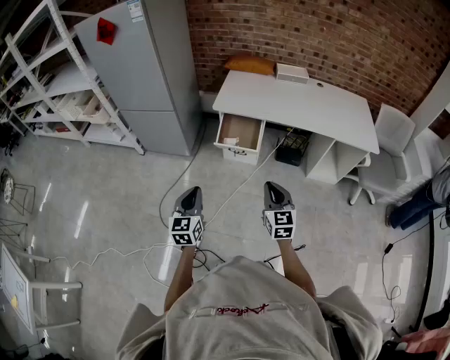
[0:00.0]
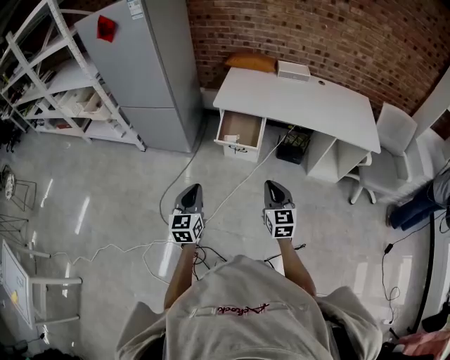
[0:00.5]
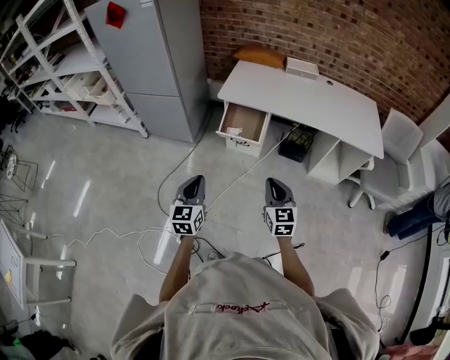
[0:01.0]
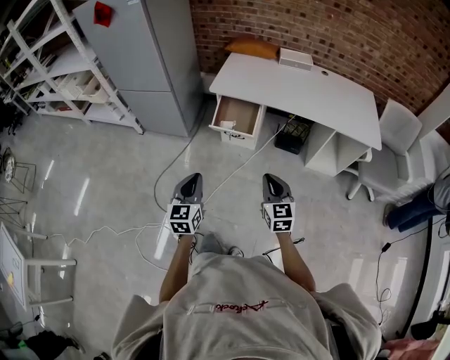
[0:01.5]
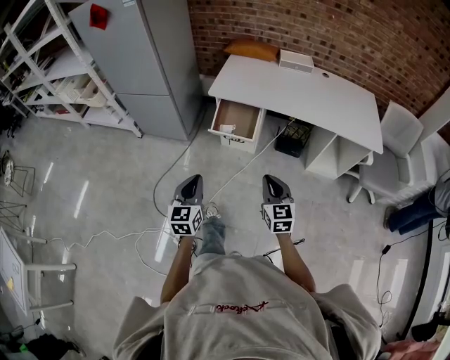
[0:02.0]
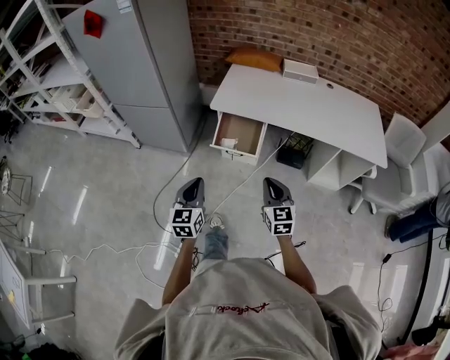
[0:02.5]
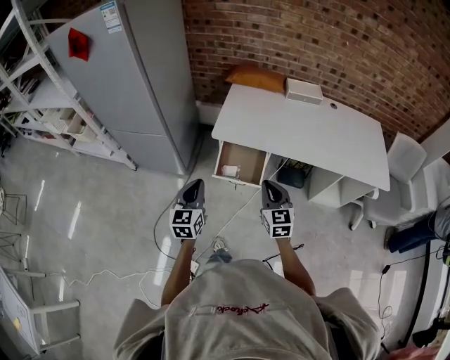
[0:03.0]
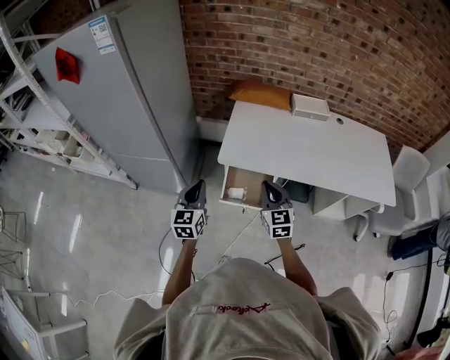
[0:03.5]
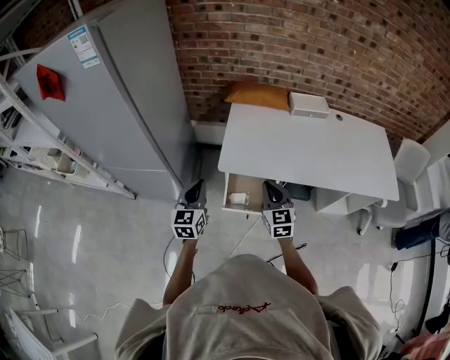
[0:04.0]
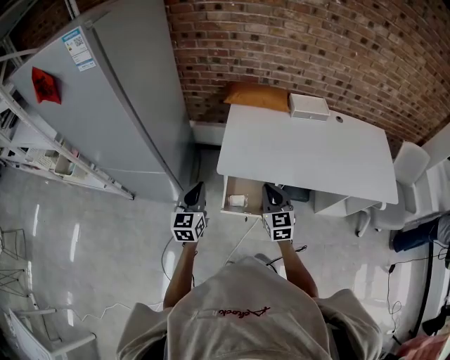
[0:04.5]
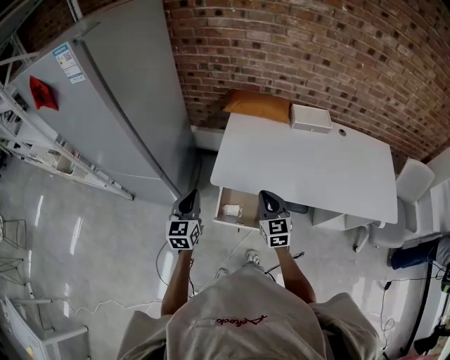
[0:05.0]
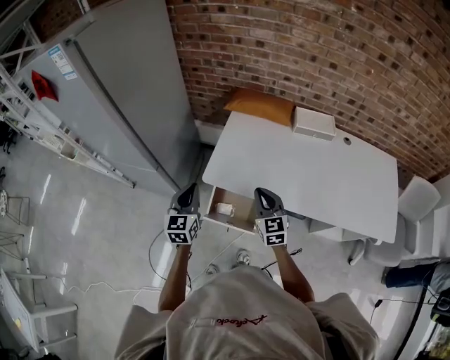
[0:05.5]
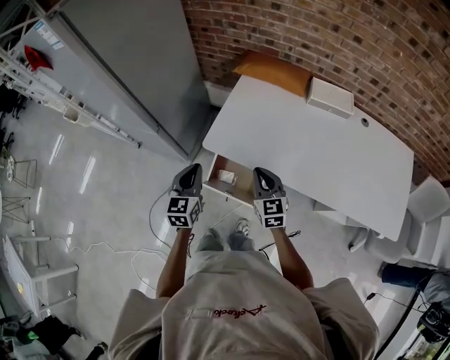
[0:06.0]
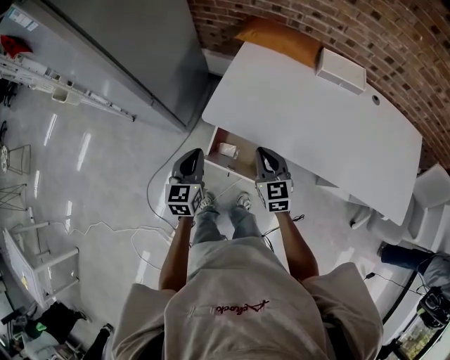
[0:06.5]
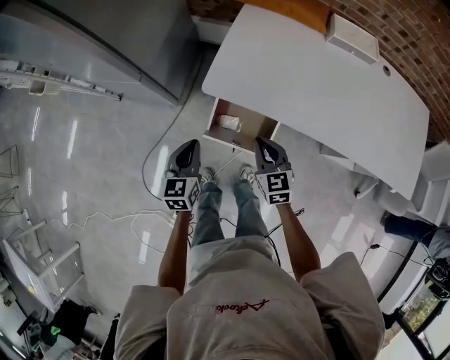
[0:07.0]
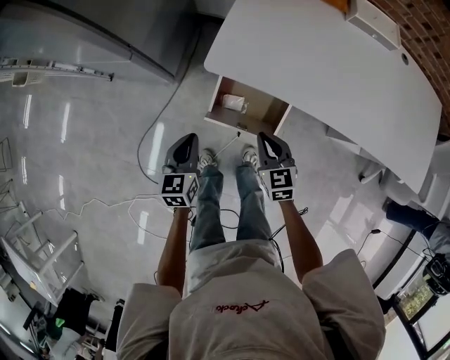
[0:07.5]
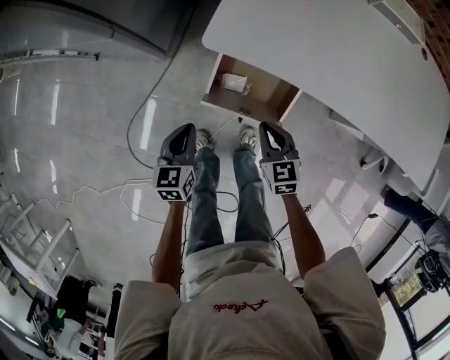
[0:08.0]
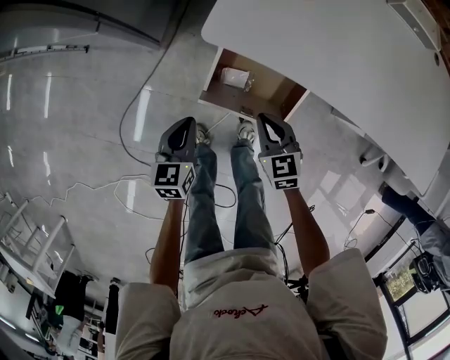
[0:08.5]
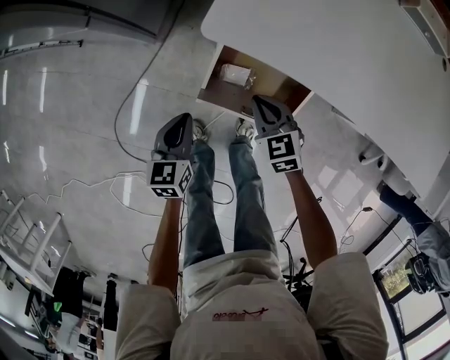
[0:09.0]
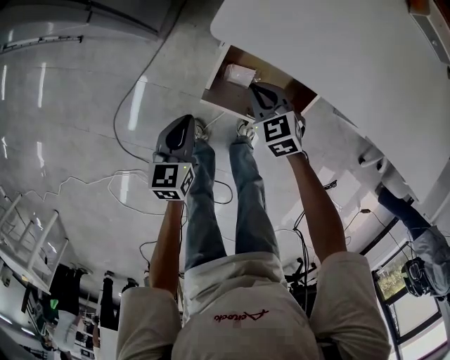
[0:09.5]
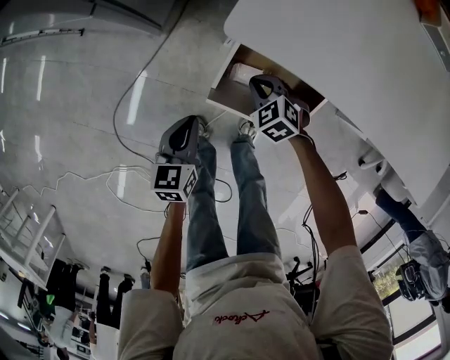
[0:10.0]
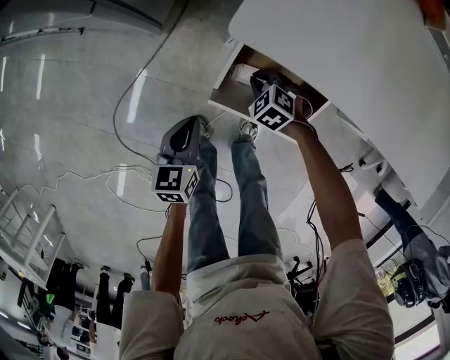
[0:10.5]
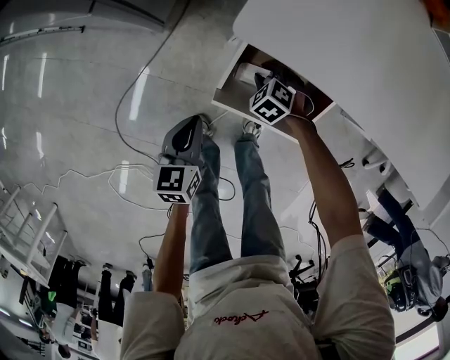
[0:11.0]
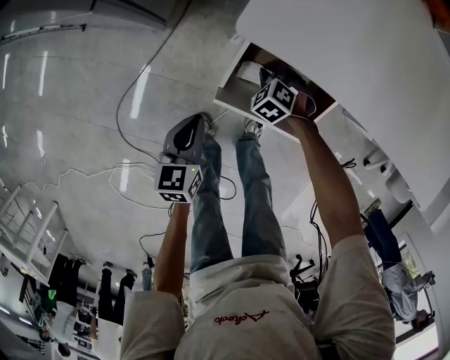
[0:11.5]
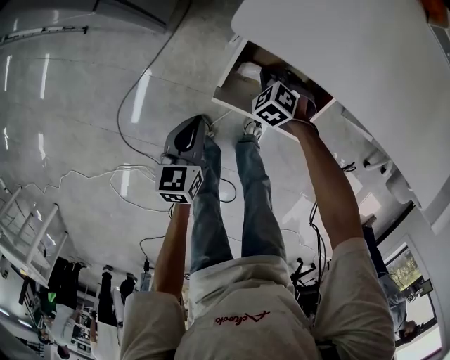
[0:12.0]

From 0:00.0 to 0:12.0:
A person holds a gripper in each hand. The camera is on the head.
From 0:00.0 to 0:02.0: Both grippers move to the right, roughly 5 cm.
From 0:02.0 to 0:04.0: The pair of grippers is taken forward, roughly 50 cm.
From 0:04.0 to 0:06.0: The left gripper moves to the right, approximately 10 cm; the right gripper travels to the right and forward by about 10 cm, and rotates about 20 degrees.
From 0:06.0 to 0:08.0: The two grippers go roughly 25 cm downward. The left gripper rotates roughly 20 degrees. Meanwhile the right gripper turns by approximately 20 degrees.
From 0:08.0 to 0:10.0: The left gripper shifts some 10 cm downward. Meanwhile the right gripper heads downward and forward, covering about 20 cm, and rotates roughly 40 degrees.
From 0:10.0 to 0:12.0: The right gripper changes place by some 5 cm, and opens, then closes again.

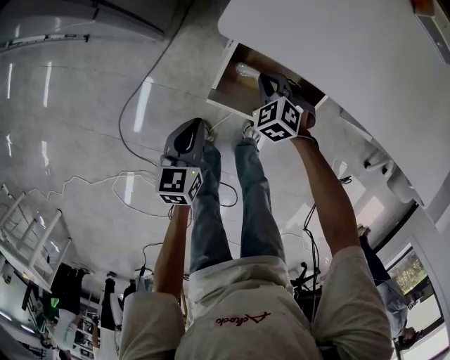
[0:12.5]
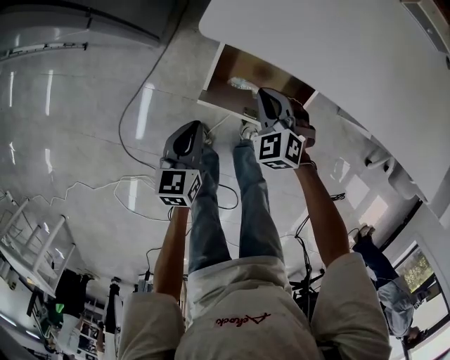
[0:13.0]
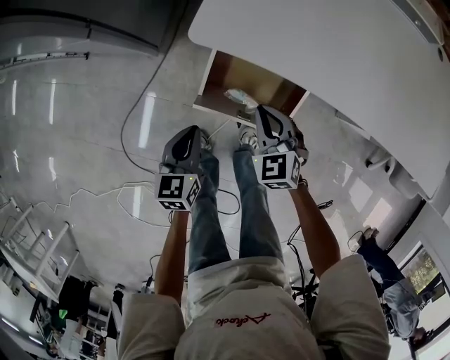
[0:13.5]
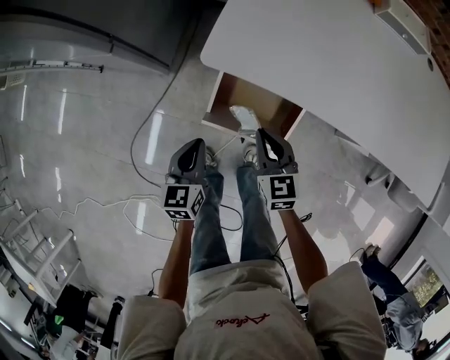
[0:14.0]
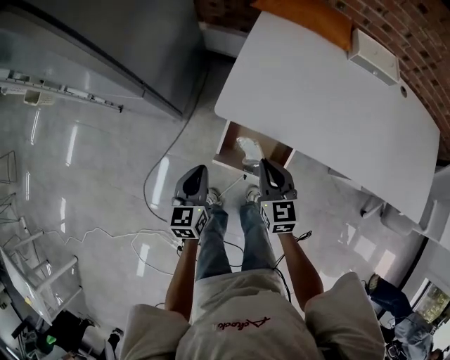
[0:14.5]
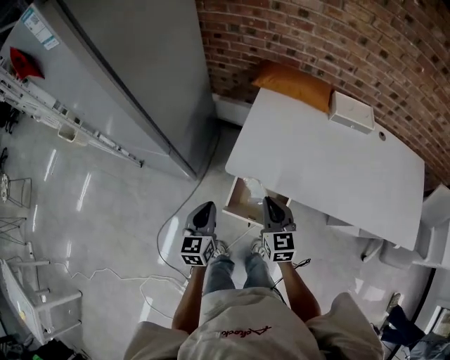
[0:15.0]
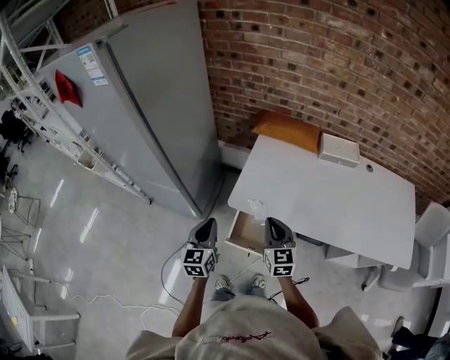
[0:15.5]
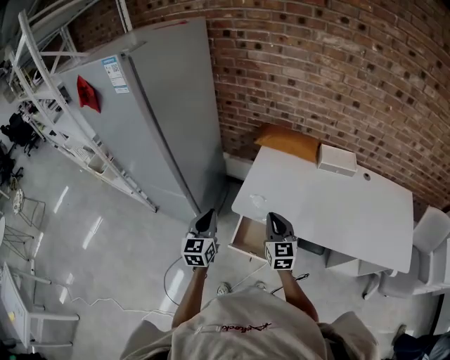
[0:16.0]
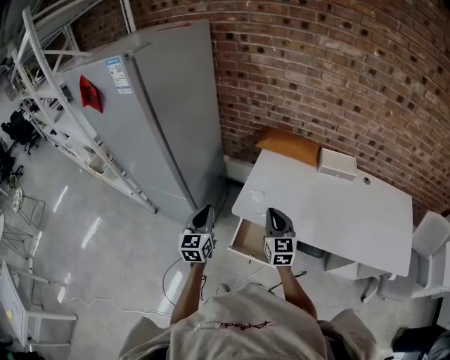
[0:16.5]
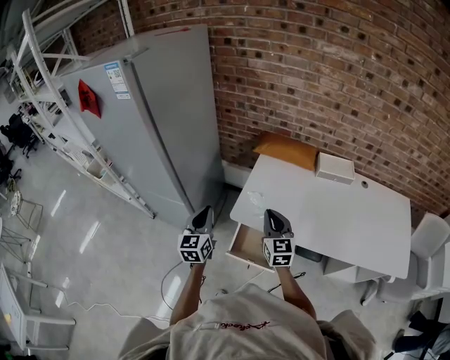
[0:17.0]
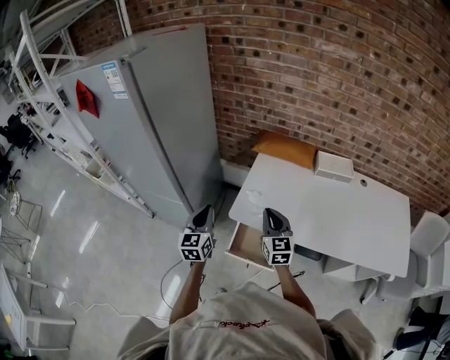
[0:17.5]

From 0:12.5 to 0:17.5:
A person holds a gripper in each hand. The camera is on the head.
From 0:12.5 to 0:15.0: The grippers both shift upward by some 30 cm. The right gripper tips its fingers upward by roughly 40 degrees.
From 0:15.0 to 0:17.5: Both grippers move upward, roughly 15 cm.

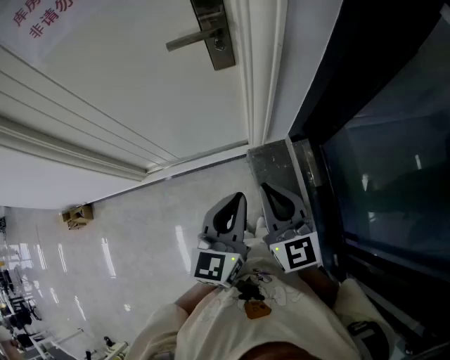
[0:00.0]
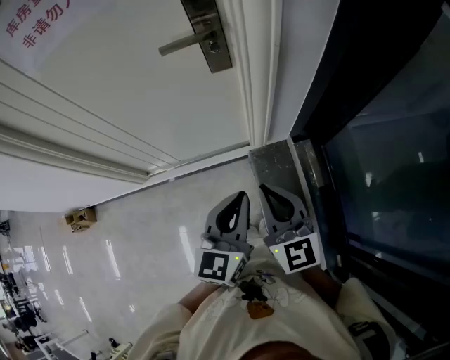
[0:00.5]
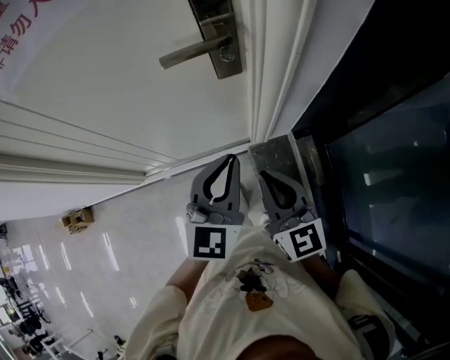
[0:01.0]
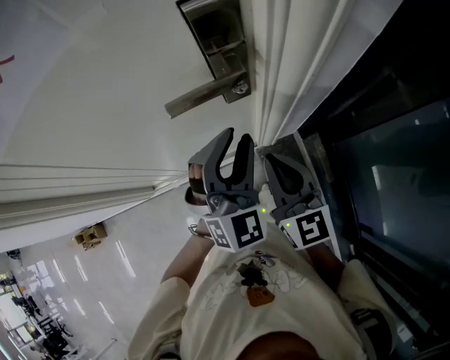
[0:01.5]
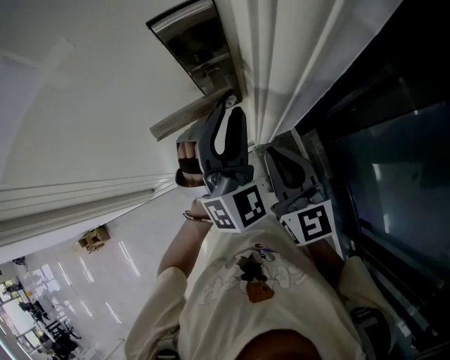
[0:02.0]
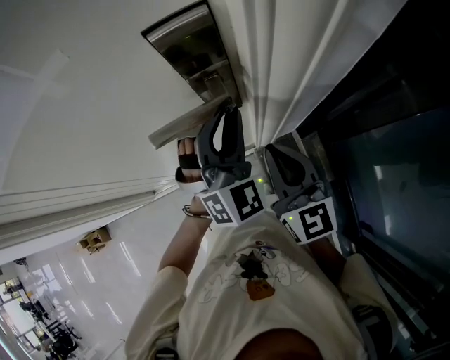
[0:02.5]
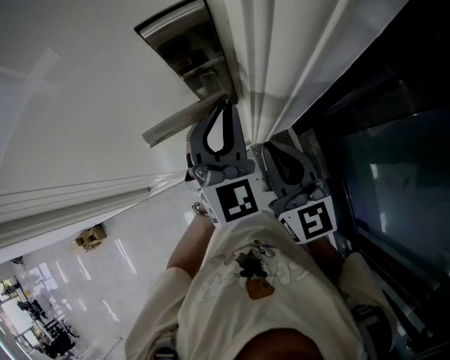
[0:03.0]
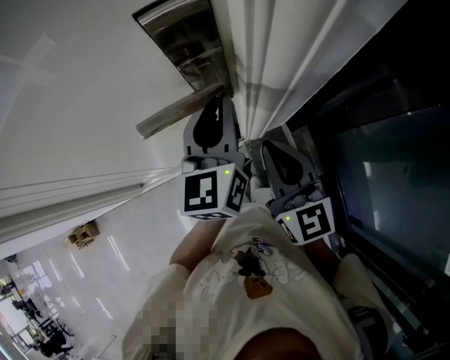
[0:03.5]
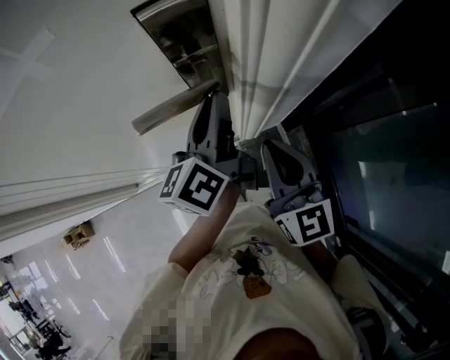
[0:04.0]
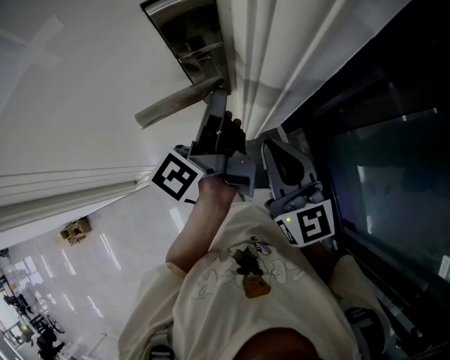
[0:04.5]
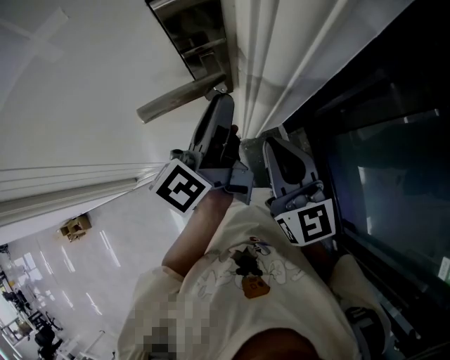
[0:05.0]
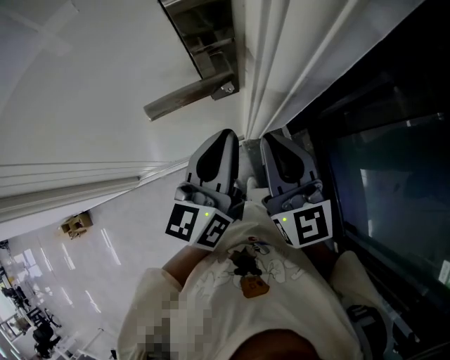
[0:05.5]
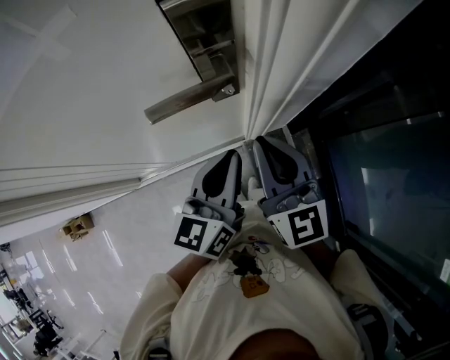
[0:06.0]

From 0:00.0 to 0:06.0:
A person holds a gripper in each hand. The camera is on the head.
From 0:00.0 to 0:02.0: Both grippers move forward, about 30 cm. The left gripper rolls clockwise, seen from behind, by roughly 60 degrees, and opens its fingers.
From 0:02.0 to 0:04.0: The left gripper twists some 100 degrees counterclockwise, seen from behind.
From 0:04.0 to 0:06.0: The left gripper moves backward, some 10 cm, and changes its angle by about 30 degrees.

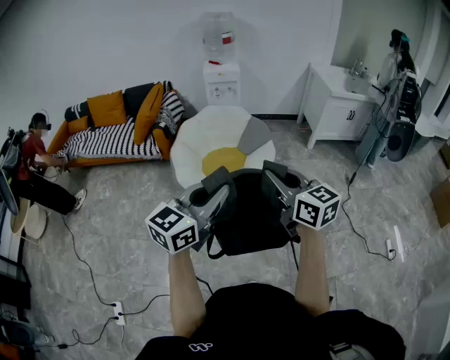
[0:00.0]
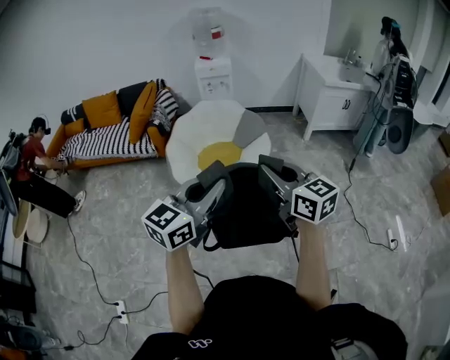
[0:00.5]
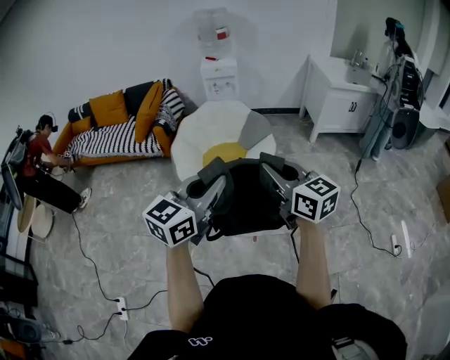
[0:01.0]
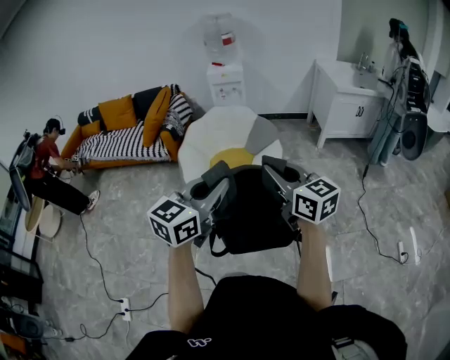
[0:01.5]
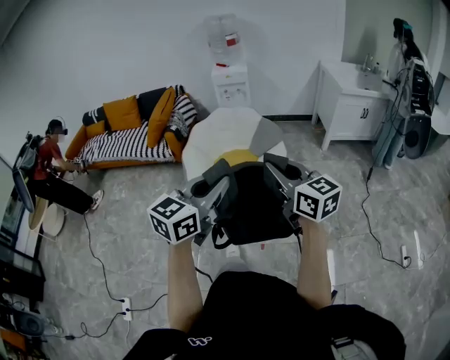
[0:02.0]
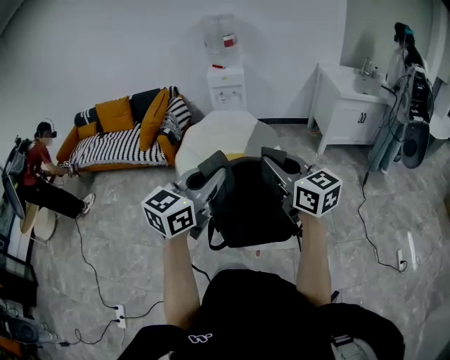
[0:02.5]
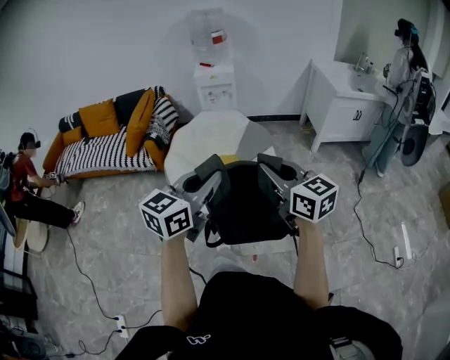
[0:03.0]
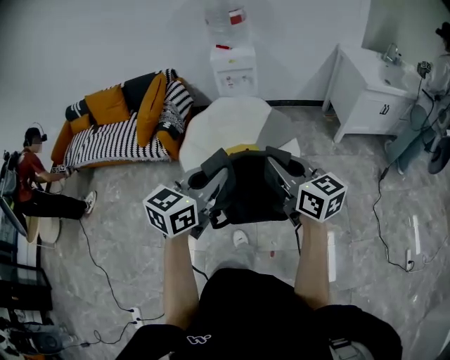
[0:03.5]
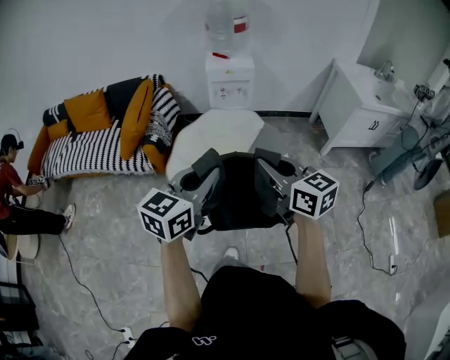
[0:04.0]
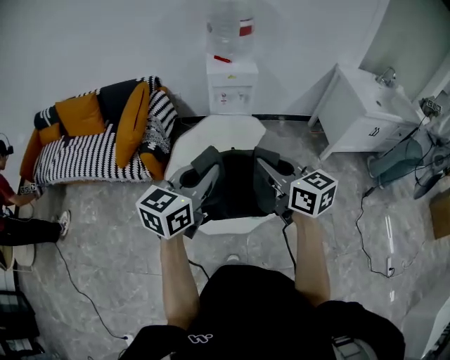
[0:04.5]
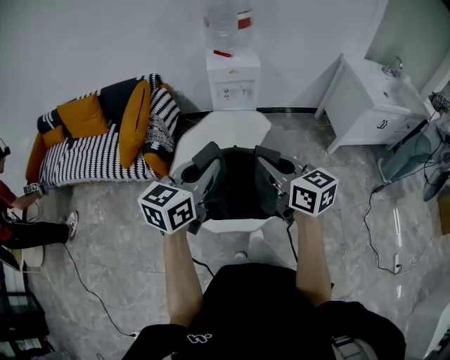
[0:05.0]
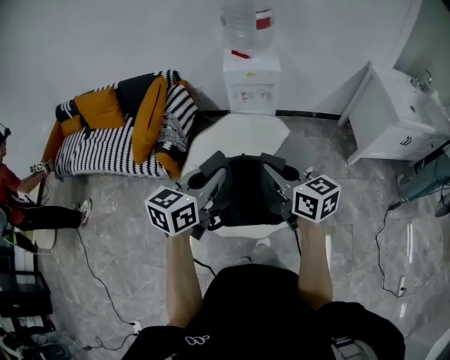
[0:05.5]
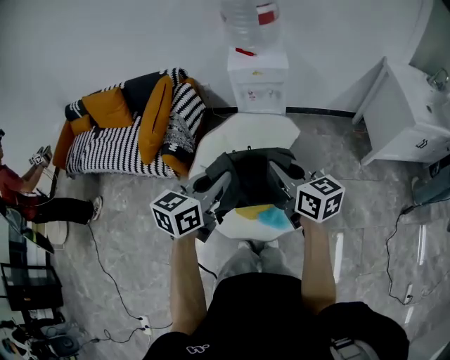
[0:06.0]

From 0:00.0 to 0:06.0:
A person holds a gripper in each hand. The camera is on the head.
From 0:00.0 to 0:02.0: The two grippers go about 5 cm to the right.
From 0:02.0 to 0:04.0: The pair of grippers is taken forward and to the left, approximately 50 cm.
From 0:04.0 to 0:06.0: Both grippers move forward, some 25 cm.
